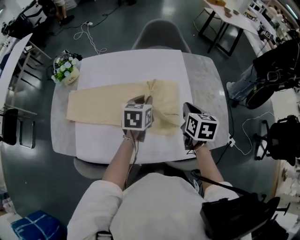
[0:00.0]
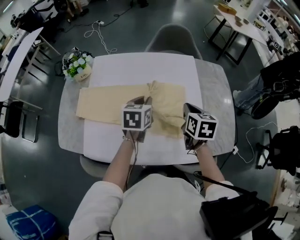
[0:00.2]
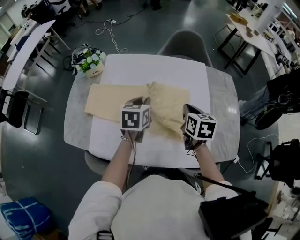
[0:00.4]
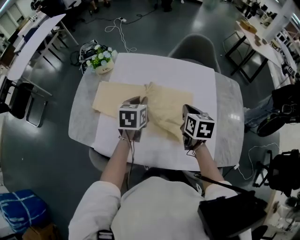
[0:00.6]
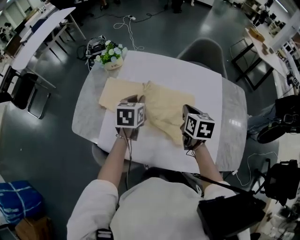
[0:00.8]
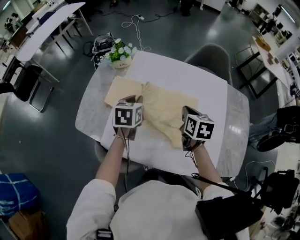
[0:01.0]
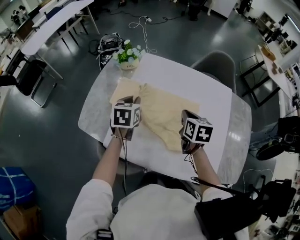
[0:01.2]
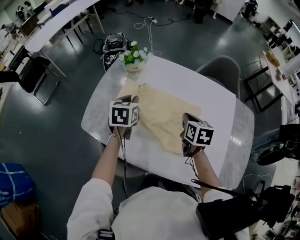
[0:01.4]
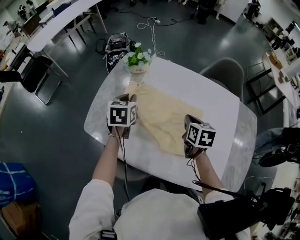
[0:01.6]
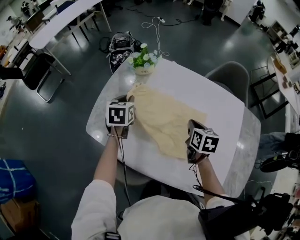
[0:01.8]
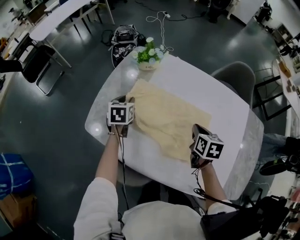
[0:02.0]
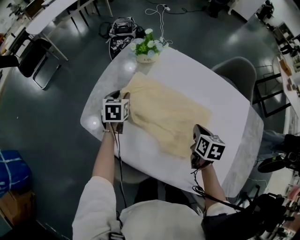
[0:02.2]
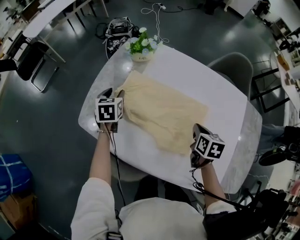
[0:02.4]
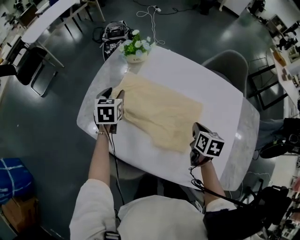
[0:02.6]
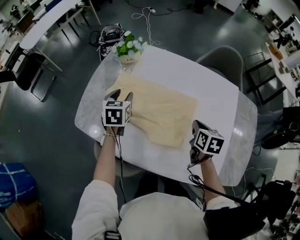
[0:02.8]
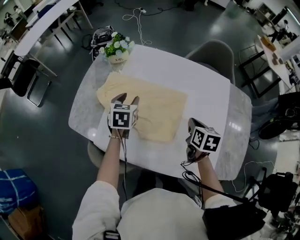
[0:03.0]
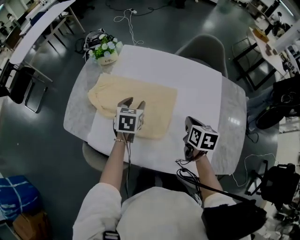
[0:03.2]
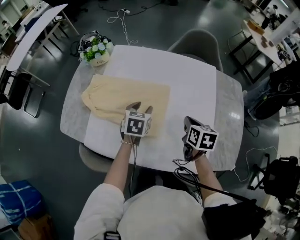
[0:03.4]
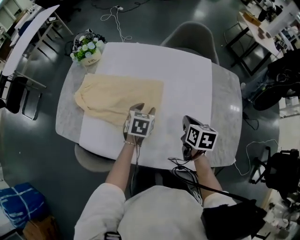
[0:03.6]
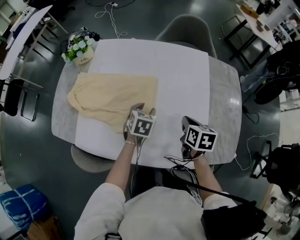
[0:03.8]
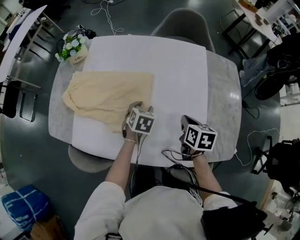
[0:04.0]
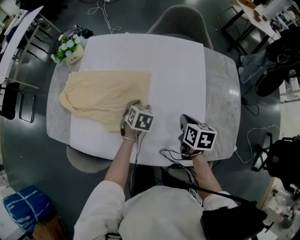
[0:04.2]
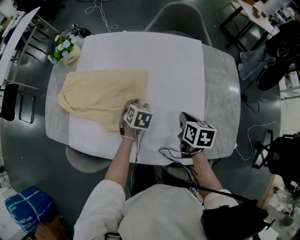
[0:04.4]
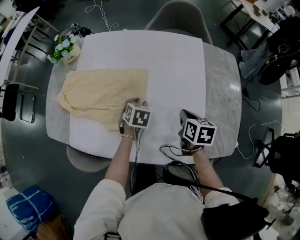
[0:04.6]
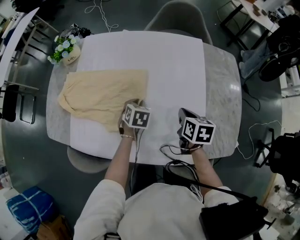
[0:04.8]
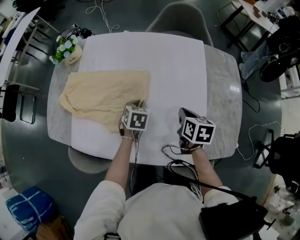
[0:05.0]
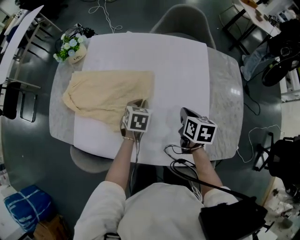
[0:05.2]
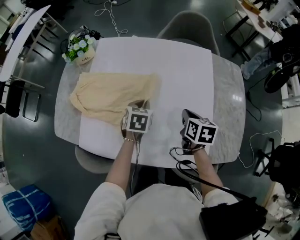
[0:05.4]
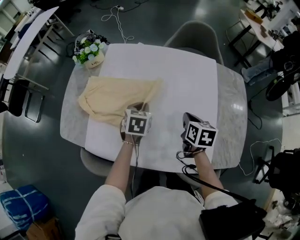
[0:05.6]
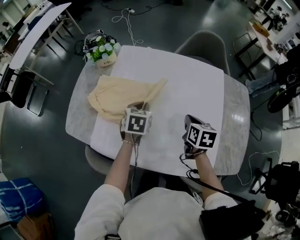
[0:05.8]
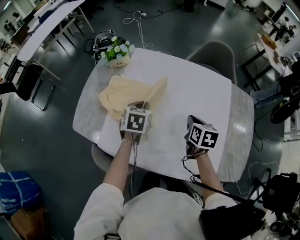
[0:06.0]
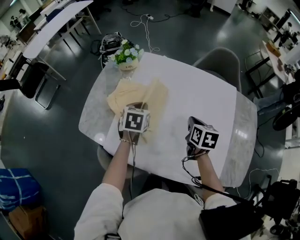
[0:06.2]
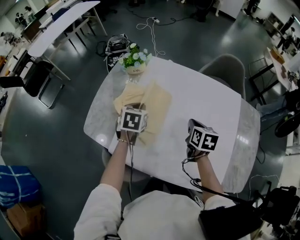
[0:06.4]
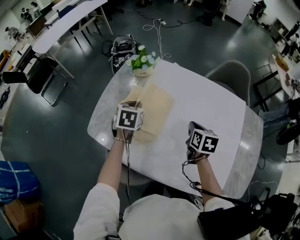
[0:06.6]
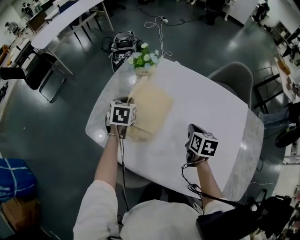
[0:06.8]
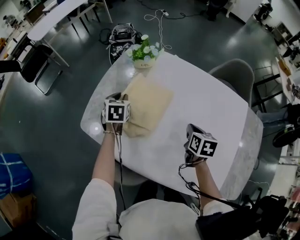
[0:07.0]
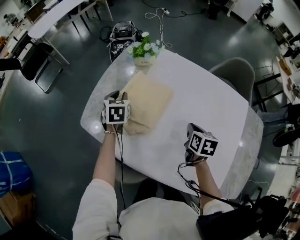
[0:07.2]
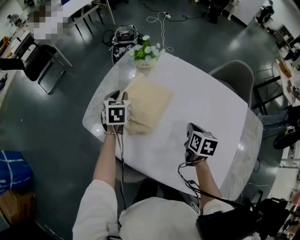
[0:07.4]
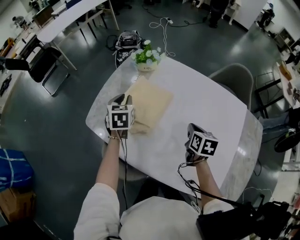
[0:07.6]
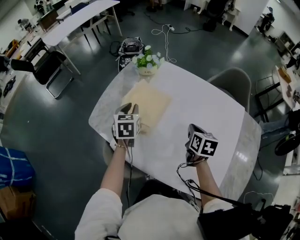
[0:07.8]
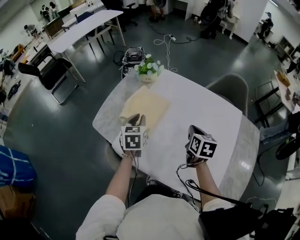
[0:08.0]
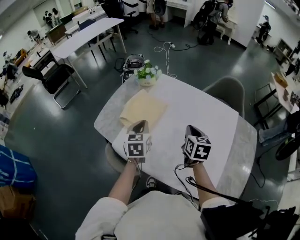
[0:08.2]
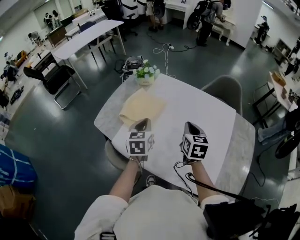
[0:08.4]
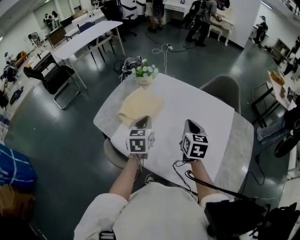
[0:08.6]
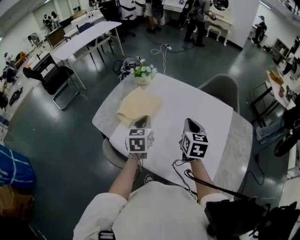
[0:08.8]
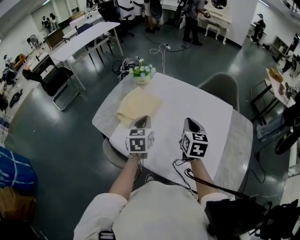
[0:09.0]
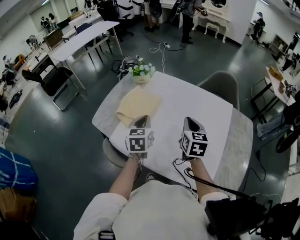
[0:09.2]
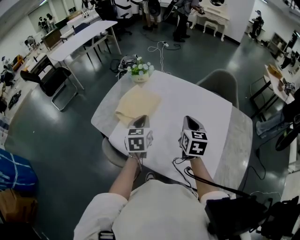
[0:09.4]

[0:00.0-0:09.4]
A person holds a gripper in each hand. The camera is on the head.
0:00.0 to 0:01.6: The right gripper shifts by about 35 cm, and rotates about 20 degrees; the left gripper ends up about 40 cm from where it was, and swivels approximately 30 degrees.
0:01.6 to 0:03.2: The left gripper is displaced to the right and downward by about 20 cm, and opens up. The right gripper shifts some 15 cm to the right and backward.
0:03.2 to 0:04.8: The left gripper shifts roughly 20 cm to the right and downward, turns by approximately 20 degrees, and closes its fingers. Meanwhile the right gripper travels to the right and downward by approximately 15 cm.
0:04.8 to 0:06.2: The right gripper goes approximately 20 cm to the left. The left gripper moves to the left and upward, about 30 cm, and swivels roughly 20 degrees.
0:06.2 to 0:07.8: The right gripper moves to the left, roughly 5 cm. Meanwhile the left gripper shifts about 10 cm to the left, and rotates roughly 20 degrees.
0:07.8 to 0:09.4: The left gripper goes approximately 20 cm backward, to the right and upward, while the right gripper goes about 15 cm upward and backward, and rotates roughly 20 degrees.

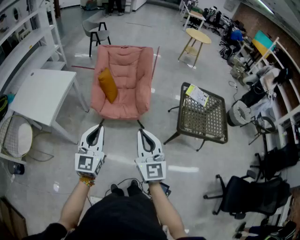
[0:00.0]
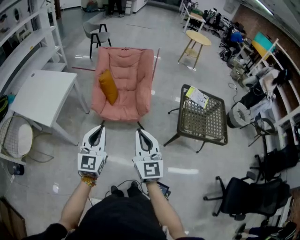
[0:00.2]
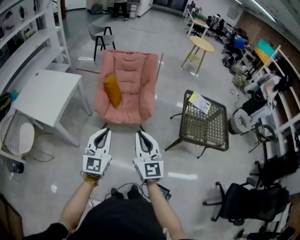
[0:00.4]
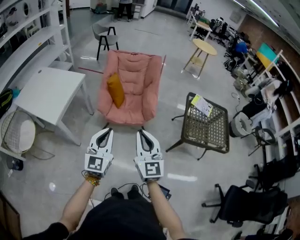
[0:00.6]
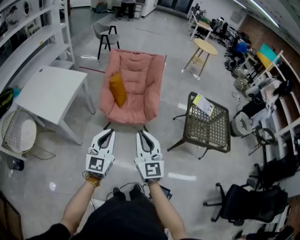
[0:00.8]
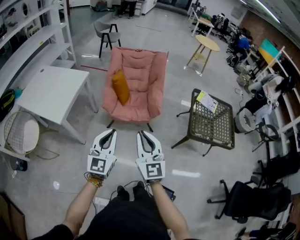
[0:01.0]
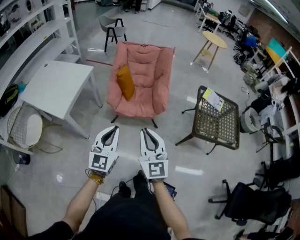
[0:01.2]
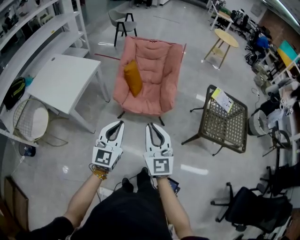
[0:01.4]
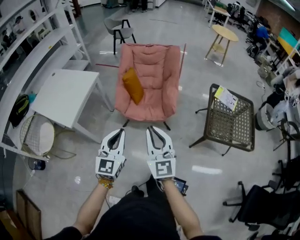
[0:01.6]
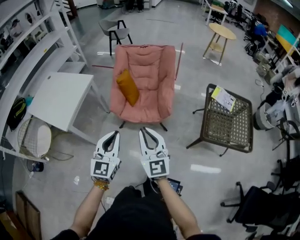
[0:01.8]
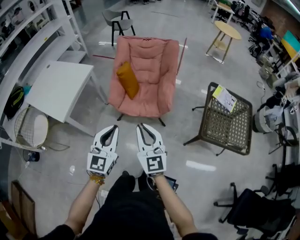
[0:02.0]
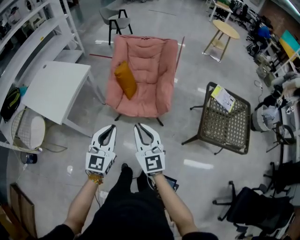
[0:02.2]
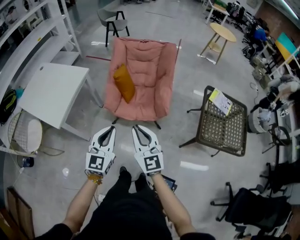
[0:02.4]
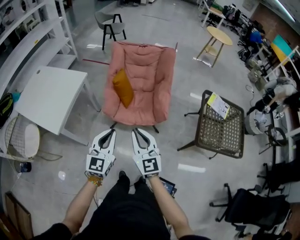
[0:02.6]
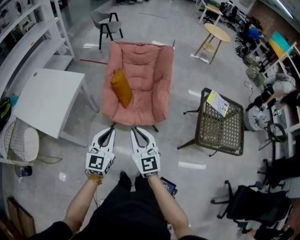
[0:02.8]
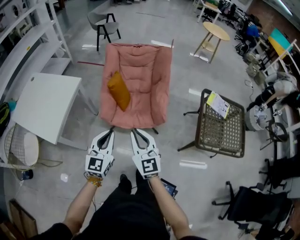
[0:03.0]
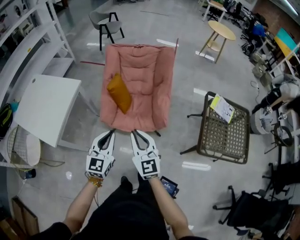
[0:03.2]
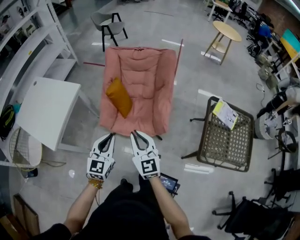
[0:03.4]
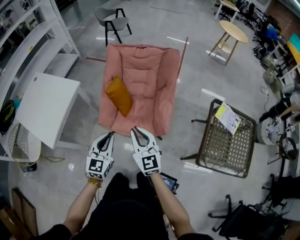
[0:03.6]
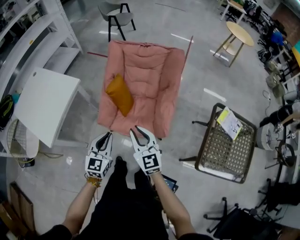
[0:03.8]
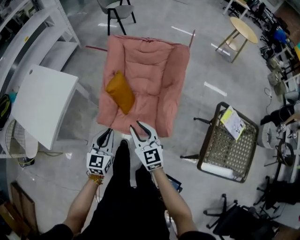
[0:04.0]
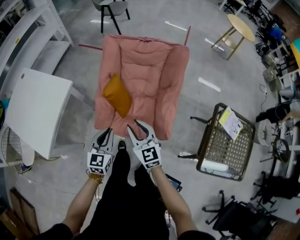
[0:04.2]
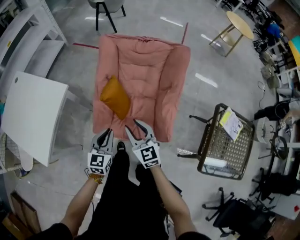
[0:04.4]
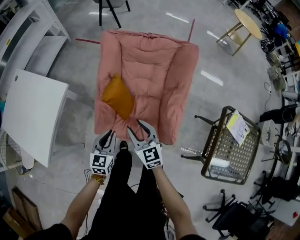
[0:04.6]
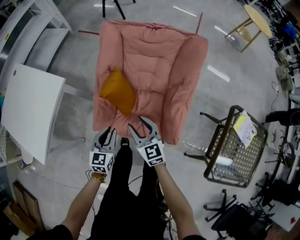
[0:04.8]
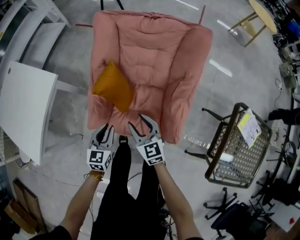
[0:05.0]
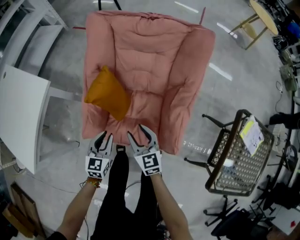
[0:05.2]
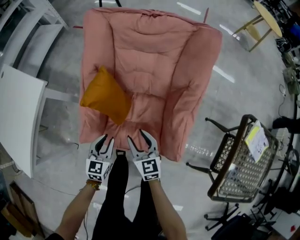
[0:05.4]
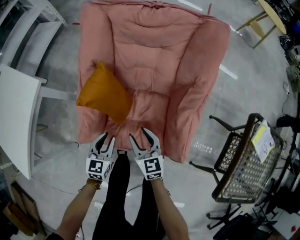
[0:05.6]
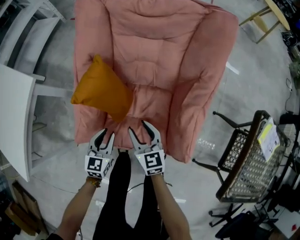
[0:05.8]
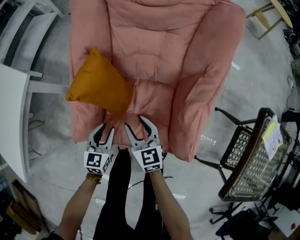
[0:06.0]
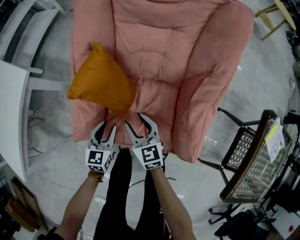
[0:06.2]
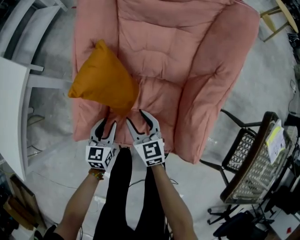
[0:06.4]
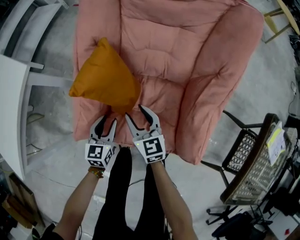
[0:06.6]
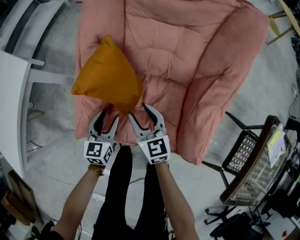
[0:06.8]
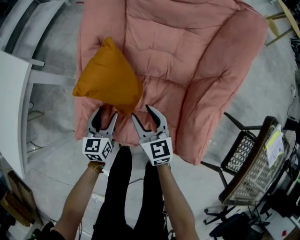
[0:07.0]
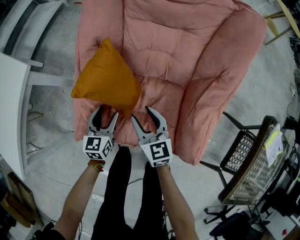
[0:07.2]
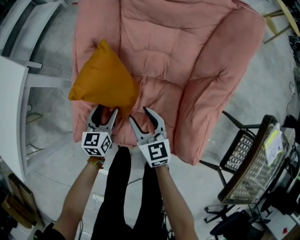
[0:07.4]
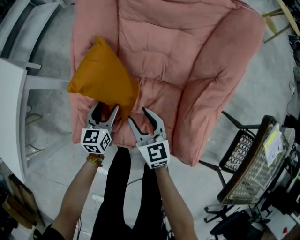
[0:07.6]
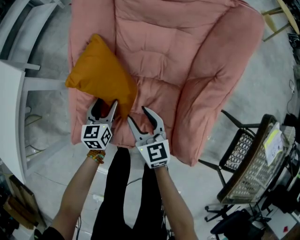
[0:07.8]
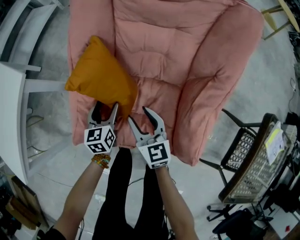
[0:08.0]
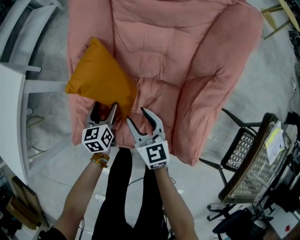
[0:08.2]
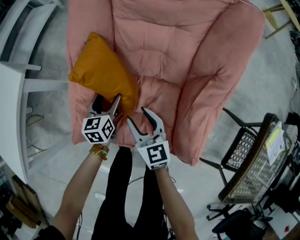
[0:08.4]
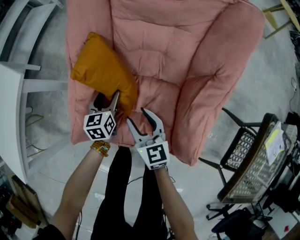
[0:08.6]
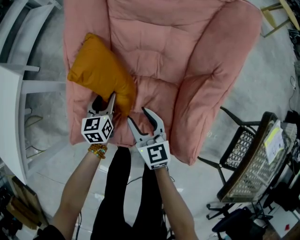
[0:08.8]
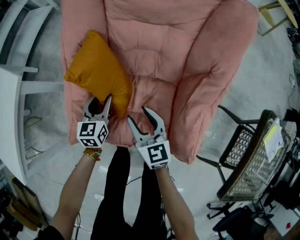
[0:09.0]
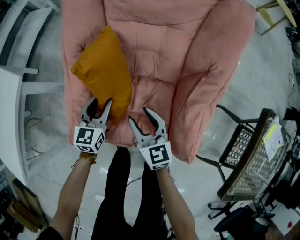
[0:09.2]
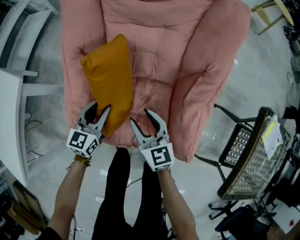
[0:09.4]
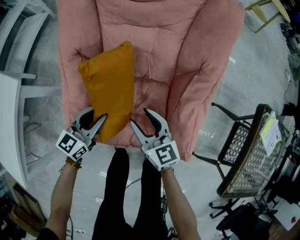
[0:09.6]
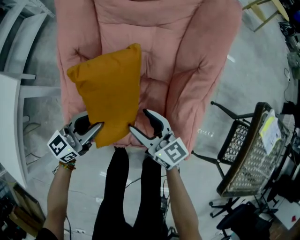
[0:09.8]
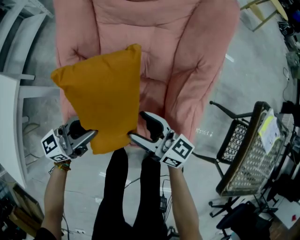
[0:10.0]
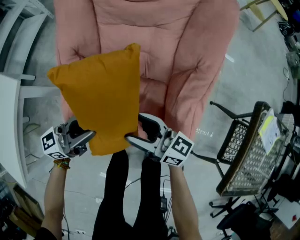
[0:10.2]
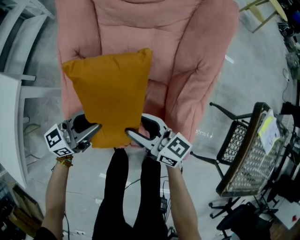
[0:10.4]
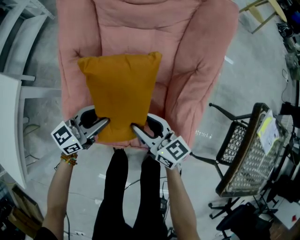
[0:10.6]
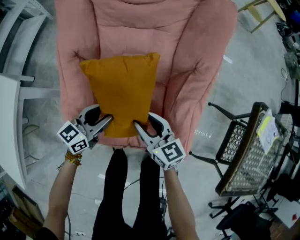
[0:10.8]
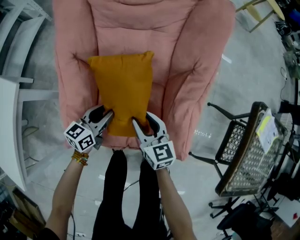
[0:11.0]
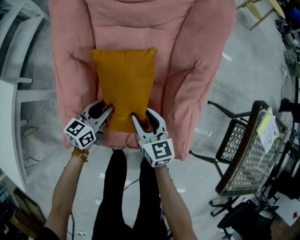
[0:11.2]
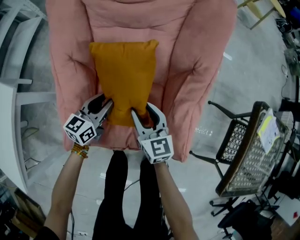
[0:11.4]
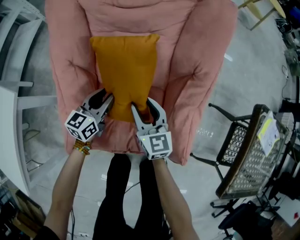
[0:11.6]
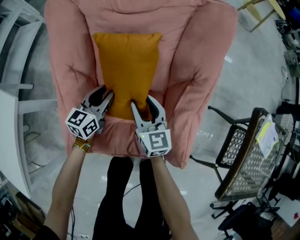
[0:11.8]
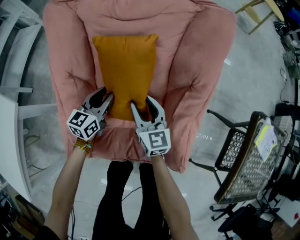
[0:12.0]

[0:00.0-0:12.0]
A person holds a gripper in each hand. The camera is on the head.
0:00.0 to 0:01.6: The left gripper goes some 5 cm forward, while the right gripper is displaced forward and to the left by some 10 cm.
0:01.6 to 0:03.0: The right gripper goes roughly 20 cm forward and downward; the left gripper is displaced forward by roughly 20 cm.
0:03.0 to 0:04.4: Both grippers travel together forward and downward, roughly 35 cm. The right gripper opens.
0:04.4 to 0:06.0: Both grippers move downward, about 35 cm.
0:06.0 to 0:07.6: The left gripper is displaced forward by roughly 10 cm, and opens.
0:07.6 to 0:09.0: The grippers move only a little.
0:09.0 to 0:10.4: The left gripper is displaced upward and backward by approximately 15 cm, and rotates some 50 degrees; the right gripper is displaced upward by approximately 5 cm, and swivels about 30 degrees.
0:10.4 to 0:12.0: The left gripper goes roughly 20 cm forward and downward, and swivels approximately 30 degrees, while the right gripper goes some 15 cm forward, and turns by approximately 40 degrees.

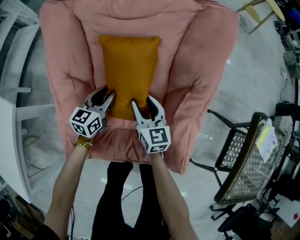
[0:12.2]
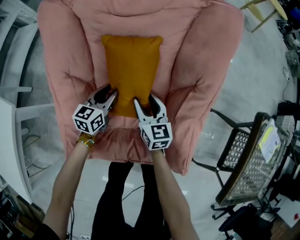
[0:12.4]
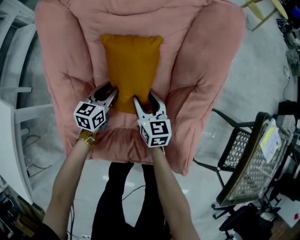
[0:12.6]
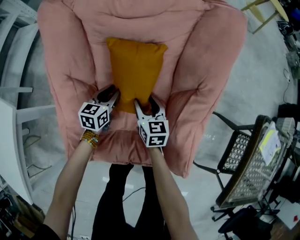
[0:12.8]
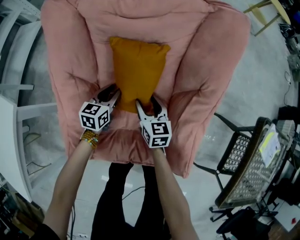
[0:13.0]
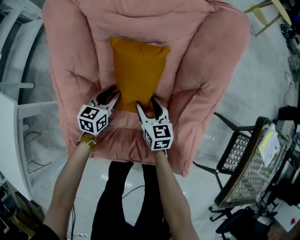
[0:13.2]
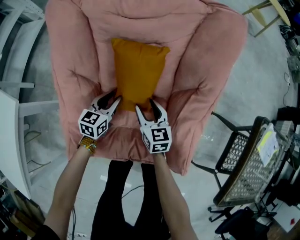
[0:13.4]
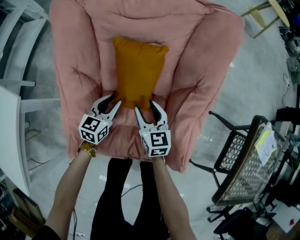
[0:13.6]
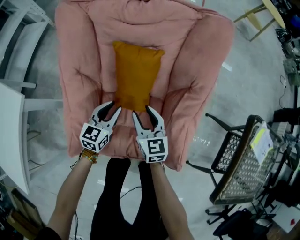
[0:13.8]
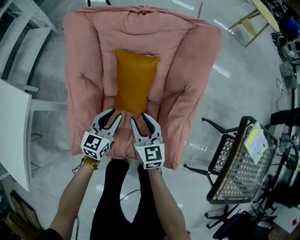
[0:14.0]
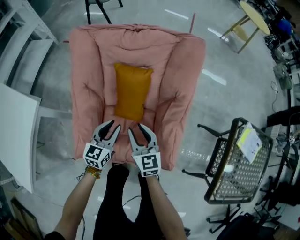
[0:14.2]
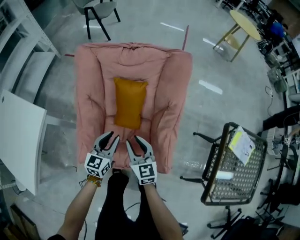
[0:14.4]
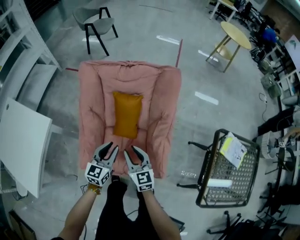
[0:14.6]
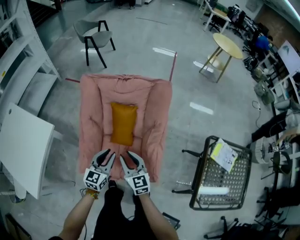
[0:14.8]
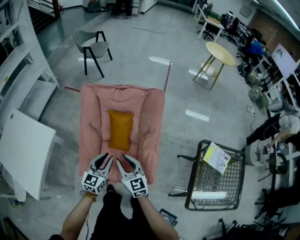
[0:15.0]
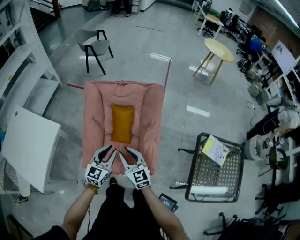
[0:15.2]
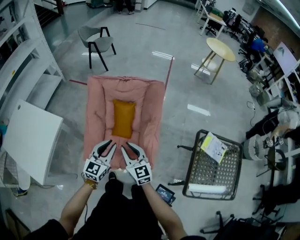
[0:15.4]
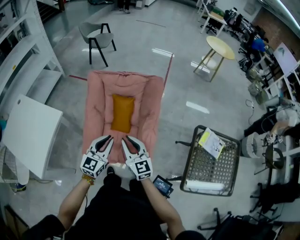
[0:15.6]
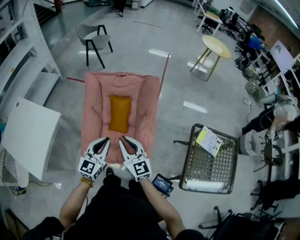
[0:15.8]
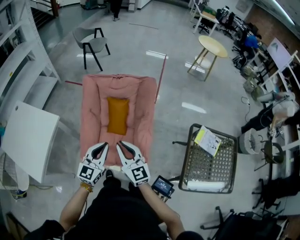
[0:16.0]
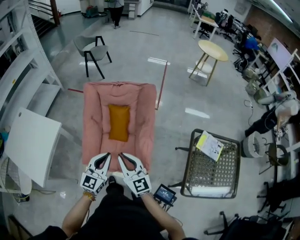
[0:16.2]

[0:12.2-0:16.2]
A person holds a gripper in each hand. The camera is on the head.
0:13.6 to 0:14.8: Both grippers move upward and backward, roughly 40 cm. The right gripper closes its fingers.
0:14.8 to 0:16.2: The grippers both shift upward and backward by approximately 25 cm.
